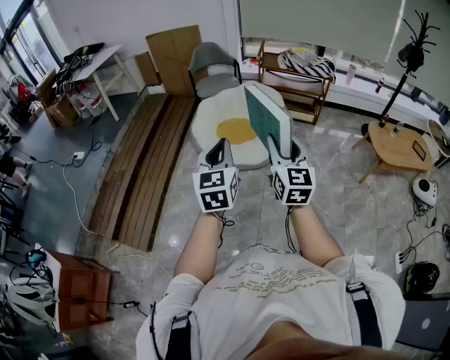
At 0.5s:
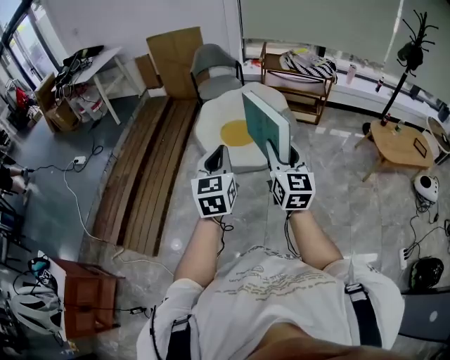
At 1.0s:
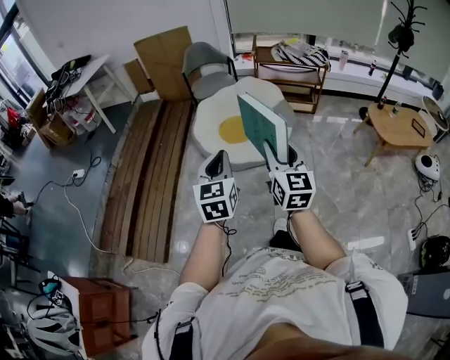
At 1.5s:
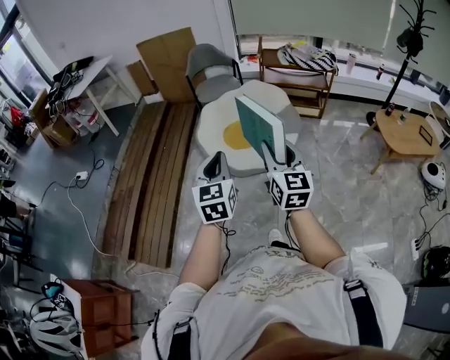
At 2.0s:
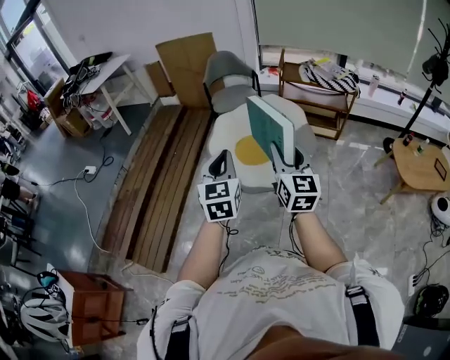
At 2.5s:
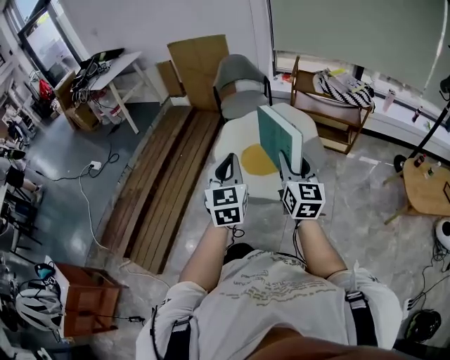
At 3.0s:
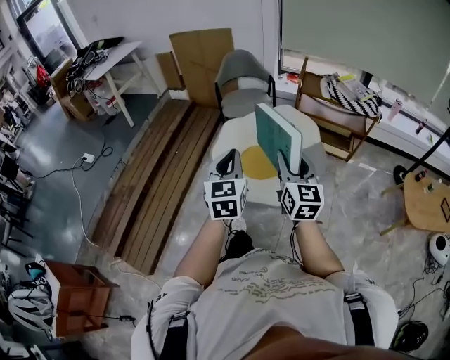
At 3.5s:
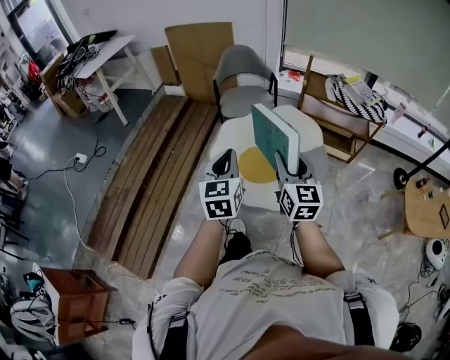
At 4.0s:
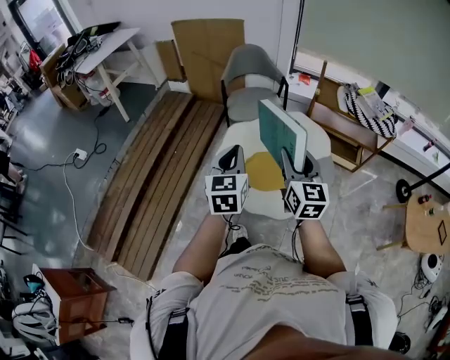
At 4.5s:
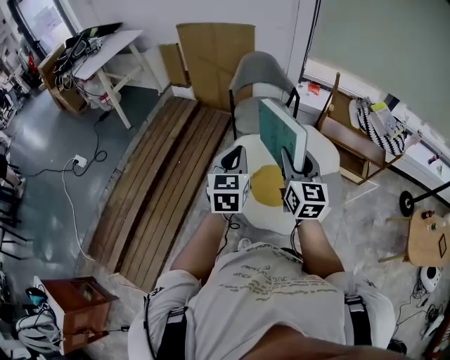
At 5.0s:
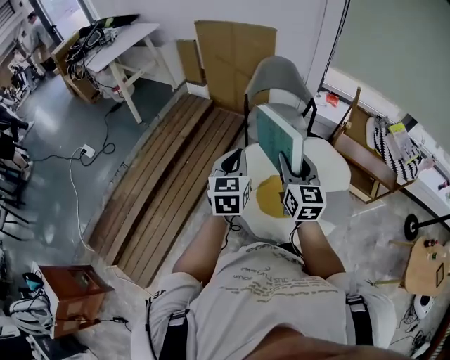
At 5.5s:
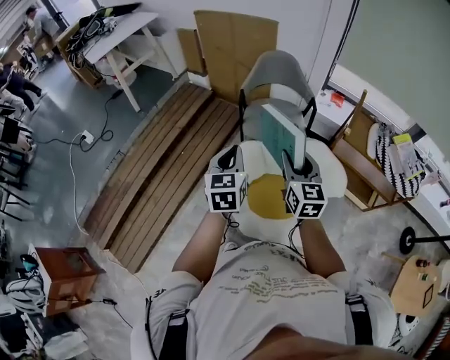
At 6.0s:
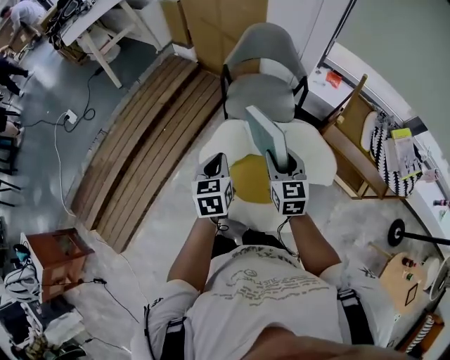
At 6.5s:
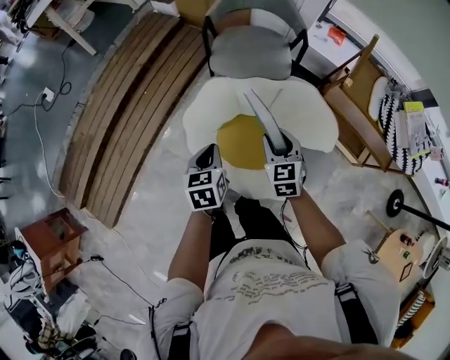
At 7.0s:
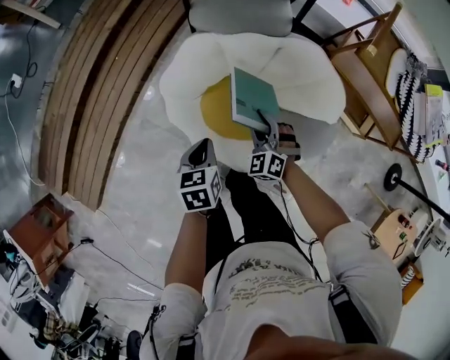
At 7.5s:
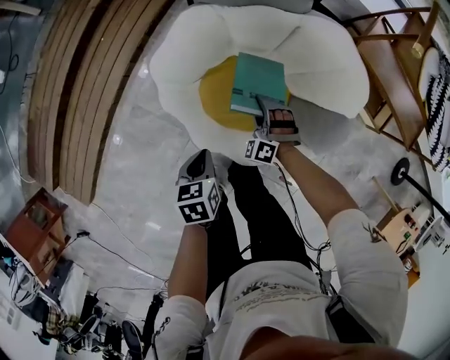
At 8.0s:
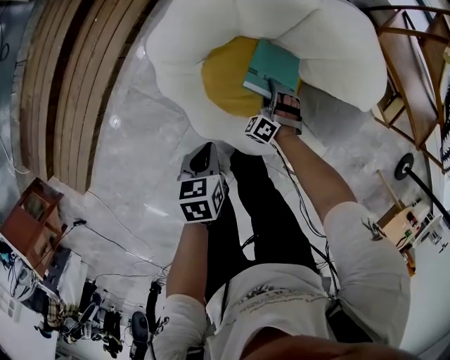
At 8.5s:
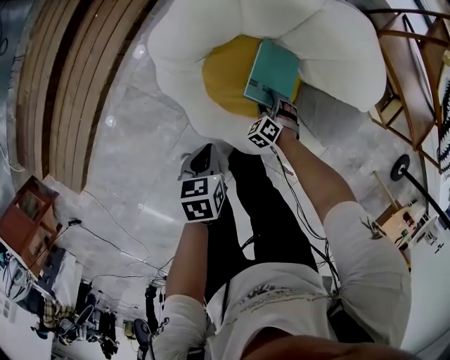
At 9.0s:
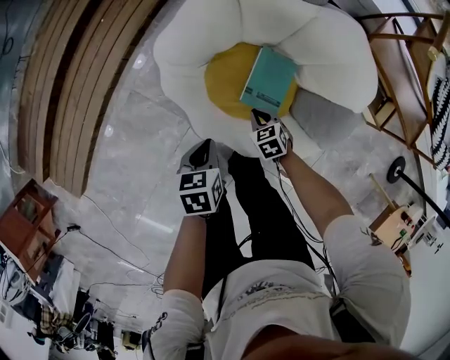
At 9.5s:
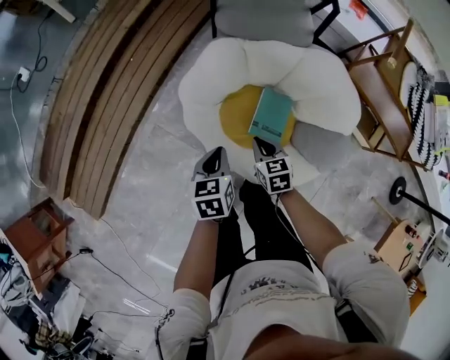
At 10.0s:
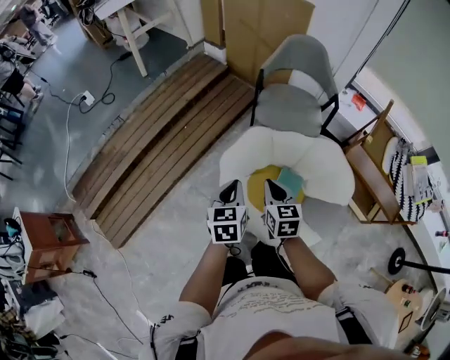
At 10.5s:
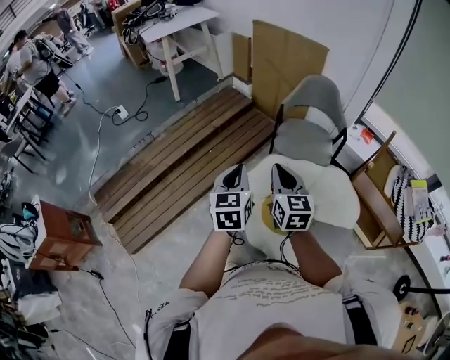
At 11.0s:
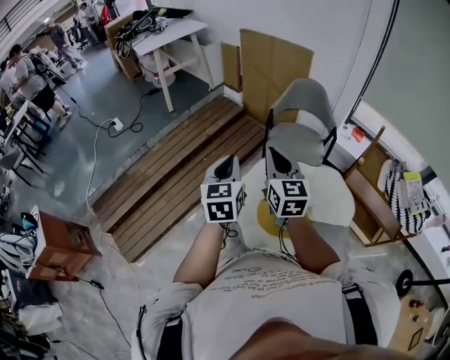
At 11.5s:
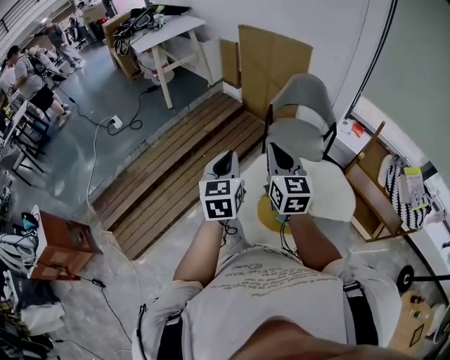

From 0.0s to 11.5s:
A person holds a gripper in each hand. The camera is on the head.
From 0.0s to 2.0s: Both grippers move forward, about 15 cm.
From 2.0s to 4.0s: Both grippers move forward, some 30 cm.
From 4.0s to 6.0s: The grippers both shift forward and downward by roughly 30 cm. The left gripper changes its angle by approximately 30 degrees; the right gripper rotates approximately 30 degrees.
From 6.0s to 7.5s: The two grippers go some 40 cm downward. The left gripper turns by roughly 30 degrees. The right gripper rolls counterclockwise, seen from behind, by some 70 degrees.
From 7.5s to 9.5s: Both grippers travel together upward, about 10 cm. The right gripper rolls clockwise, seen from behind, by about 70 degrees, and closes its fingers.
From 9.5s to 11.5s: Both grippers travel together upward, approximately 50 cm. The right gripper tilts its fingers about 40 degrees upward. The left gripper tilts its fingers some 30 degrees upward.

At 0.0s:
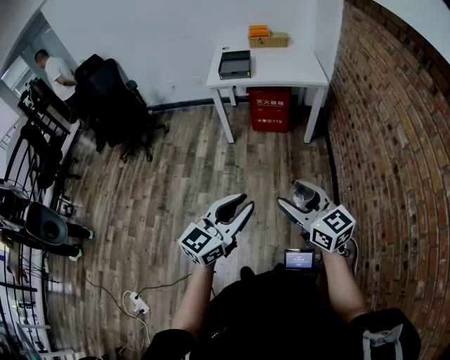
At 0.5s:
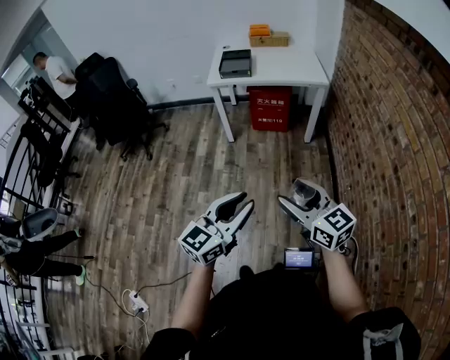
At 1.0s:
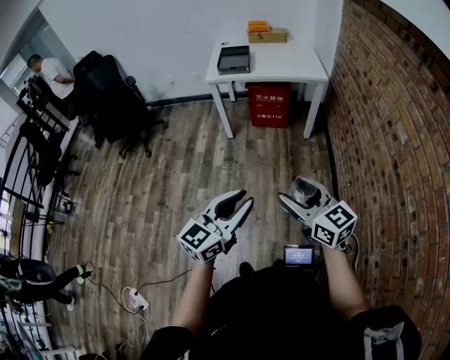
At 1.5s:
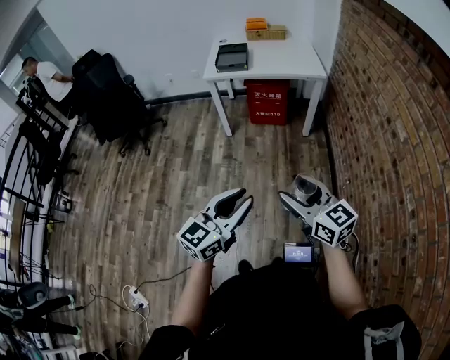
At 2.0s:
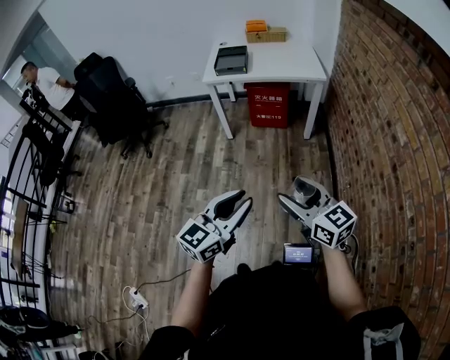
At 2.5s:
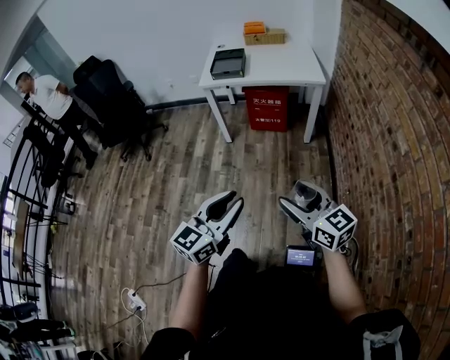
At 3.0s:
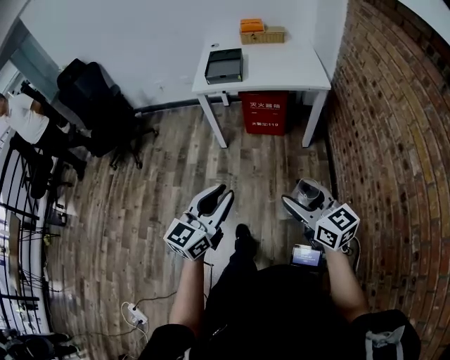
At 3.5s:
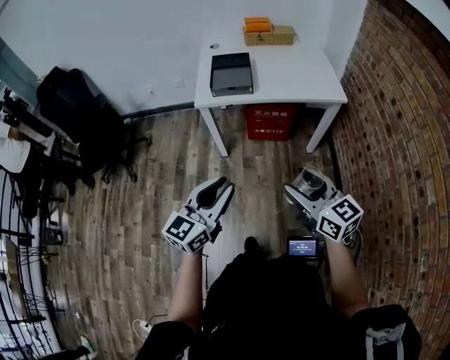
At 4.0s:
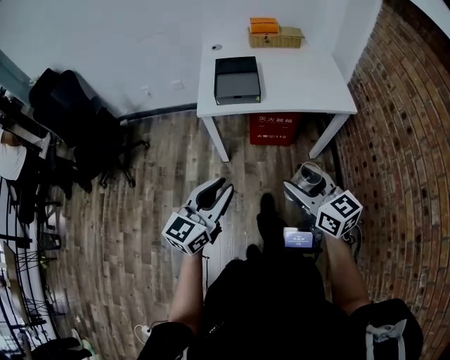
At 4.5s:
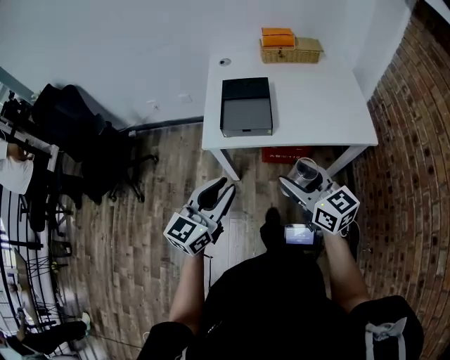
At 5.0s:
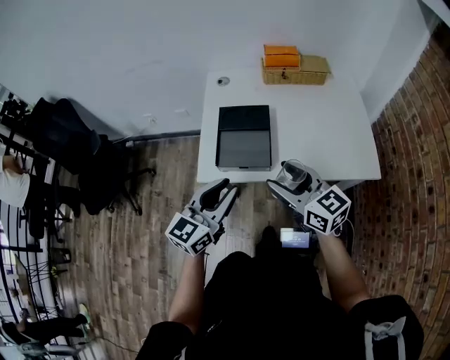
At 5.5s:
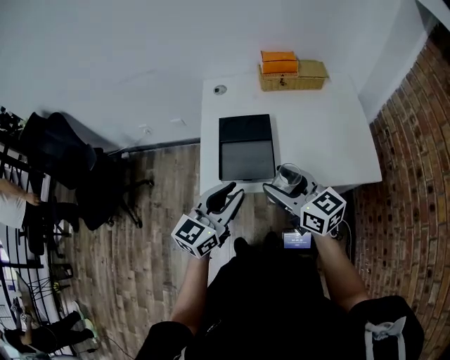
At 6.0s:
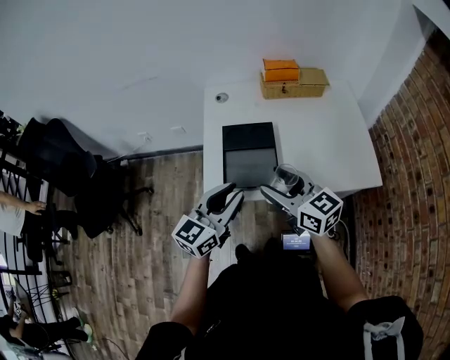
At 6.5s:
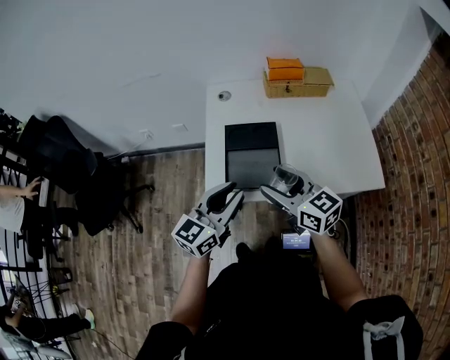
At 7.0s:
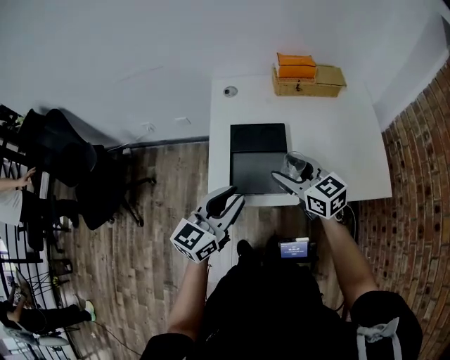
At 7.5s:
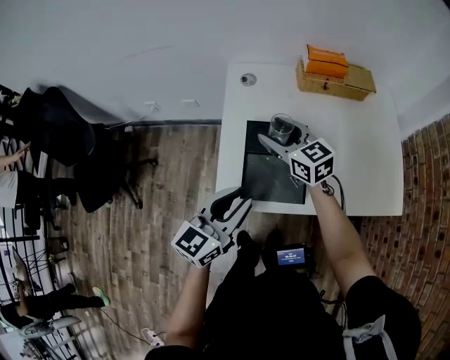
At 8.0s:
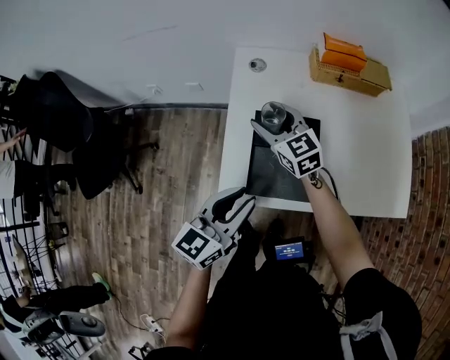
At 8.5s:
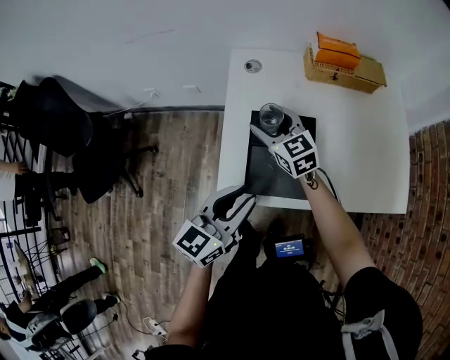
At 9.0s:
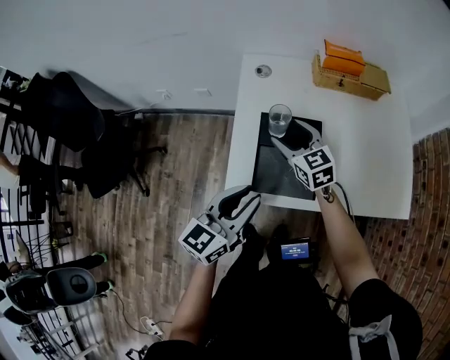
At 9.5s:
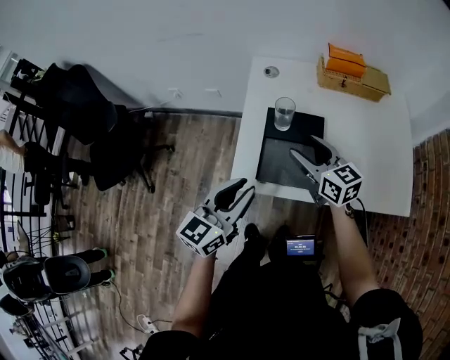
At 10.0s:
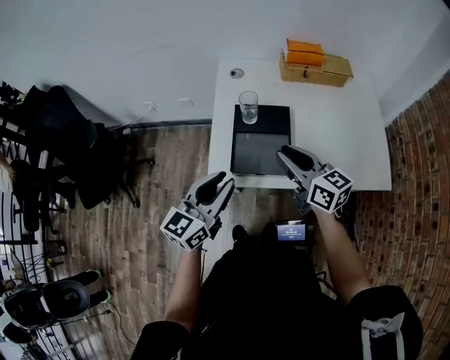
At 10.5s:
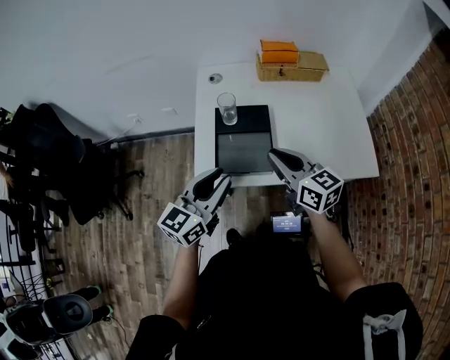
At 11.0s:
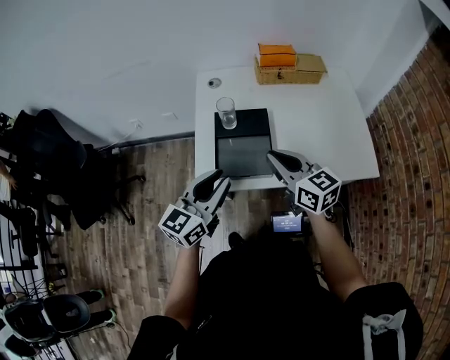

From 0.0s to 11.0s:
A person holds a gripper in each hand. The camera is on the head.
From 0.0s to 2.0s: The grippers make only small movements.
From 2.0s to 3.5s: The grippers both shift forward by roughly 35 cm.
From 3.5s to 5.5s: The pair of grippers is taken forward, approximately 40 cm.
From 5.5s to 7.5s: The left gripper moves forward, approximately 10 cm; the right gripper travels forward by some 25 cm.
From 7.5s to 9.0s: The right gripper heads downward, covering about 5 cm.
From 9.0s to 11.0s: The right gripper travels backward, upward and to the right by some 20 cm, turns by some 20 degrees, and closes, while the left gripper shifts by about 5 cm.

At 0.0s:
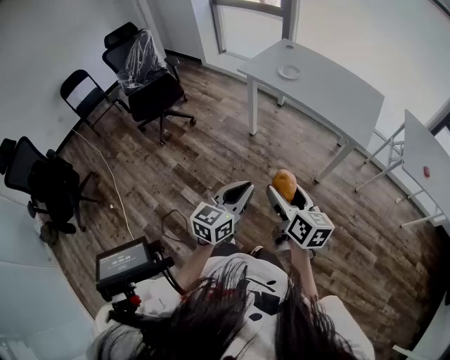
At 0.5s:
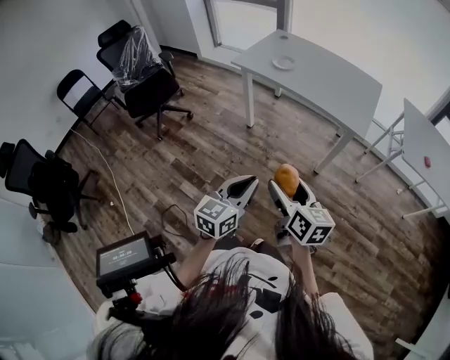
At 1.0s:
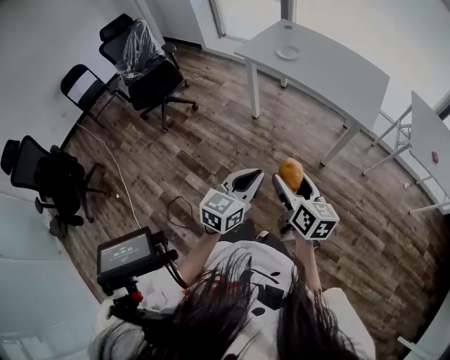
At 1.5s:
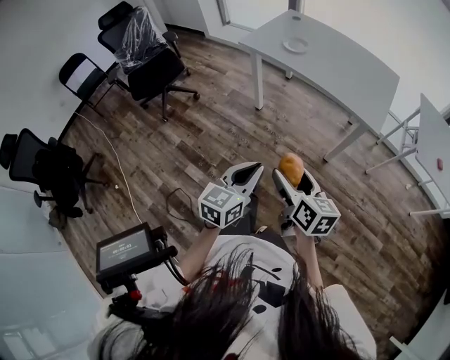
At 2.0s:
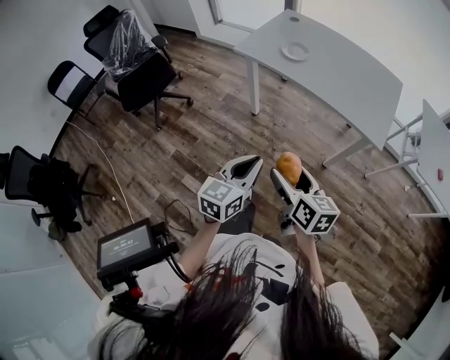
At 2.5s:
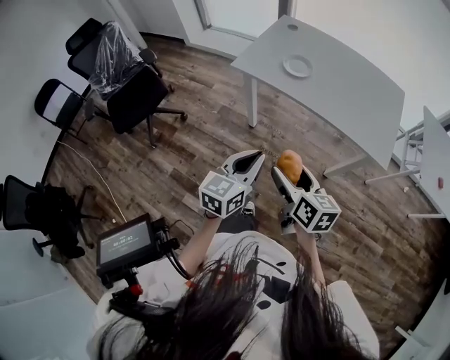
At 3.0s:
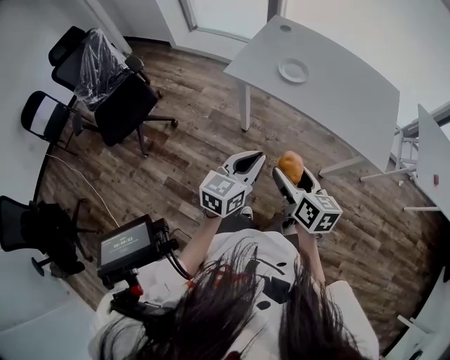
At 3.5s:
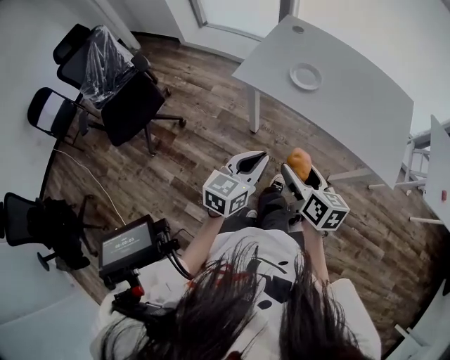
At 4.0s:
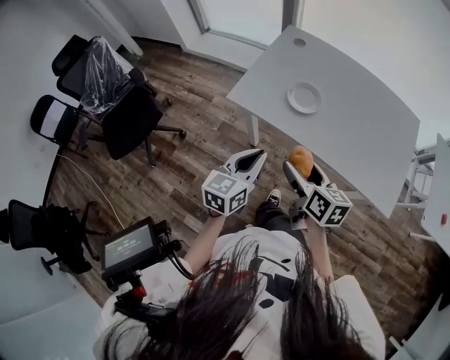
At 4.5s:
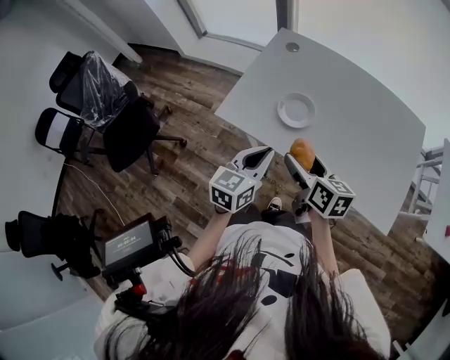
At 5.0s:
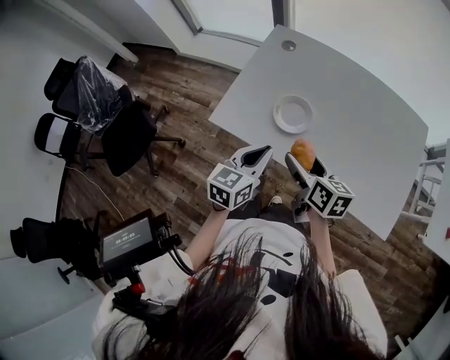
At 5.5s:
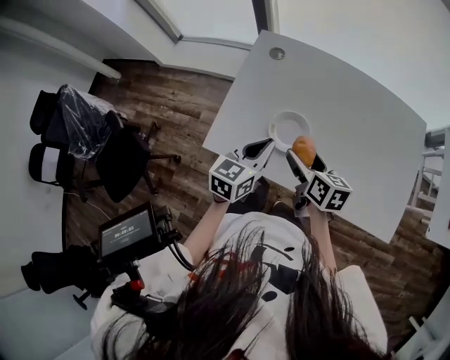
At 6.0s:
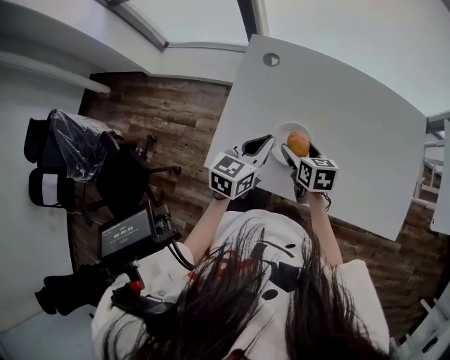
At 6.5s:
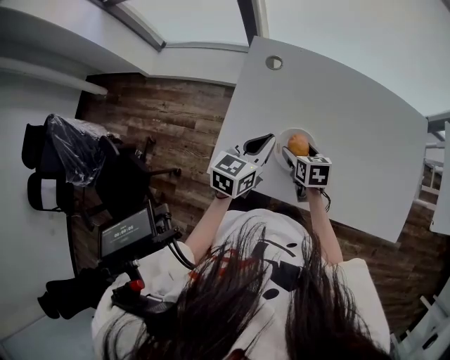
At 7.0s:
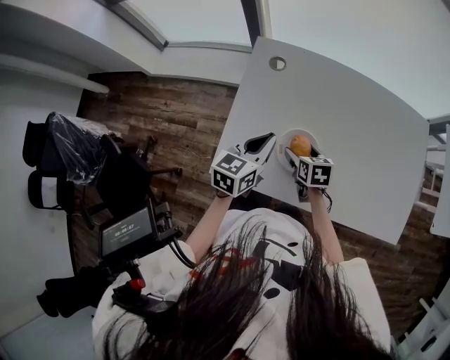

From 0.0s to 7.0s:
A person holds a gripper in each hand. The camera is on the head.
From 0.0s to 2.0s: The two grippers go about 15 cm forward.
From 2.0s to 3.5s: Both grippers travel together forward, about 25 cm.
From 3.5s to 5.0s: The two grippers go approximately 25 cm forward.
From 5.0s to 7.0s: The left gripper goes about 20 cm forward; the right gripper moves forward and downward, about 20 cm, and rotates approximately 30 degrees.
